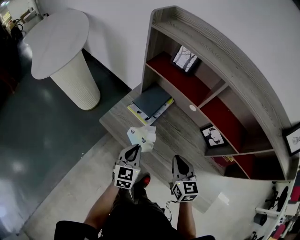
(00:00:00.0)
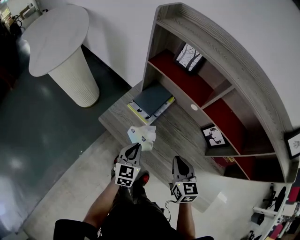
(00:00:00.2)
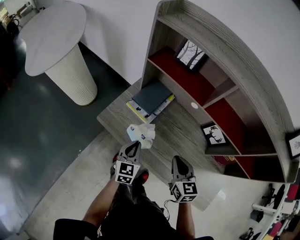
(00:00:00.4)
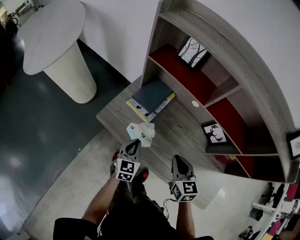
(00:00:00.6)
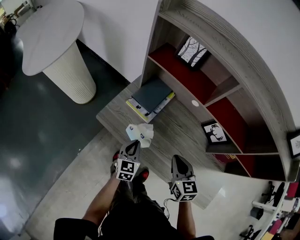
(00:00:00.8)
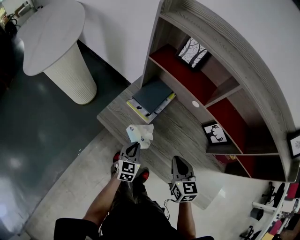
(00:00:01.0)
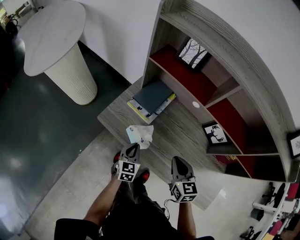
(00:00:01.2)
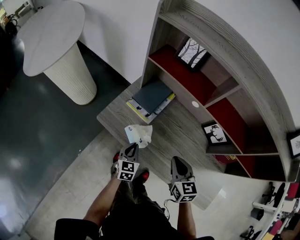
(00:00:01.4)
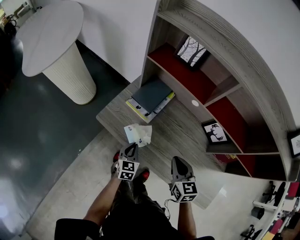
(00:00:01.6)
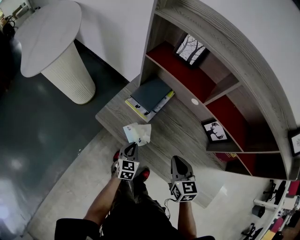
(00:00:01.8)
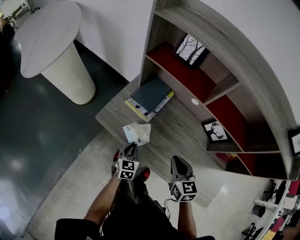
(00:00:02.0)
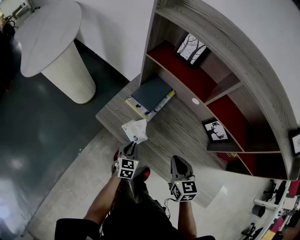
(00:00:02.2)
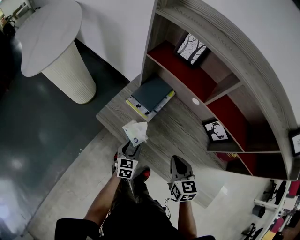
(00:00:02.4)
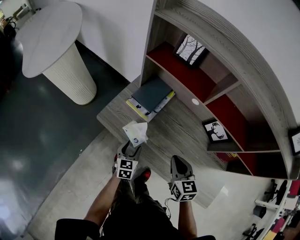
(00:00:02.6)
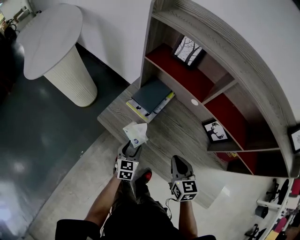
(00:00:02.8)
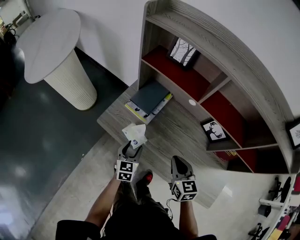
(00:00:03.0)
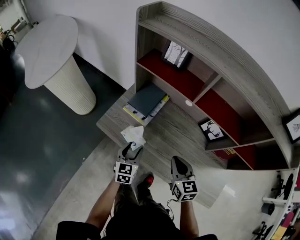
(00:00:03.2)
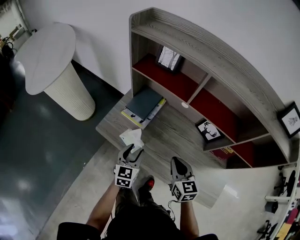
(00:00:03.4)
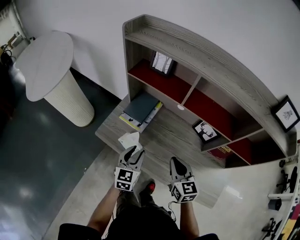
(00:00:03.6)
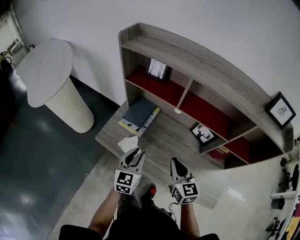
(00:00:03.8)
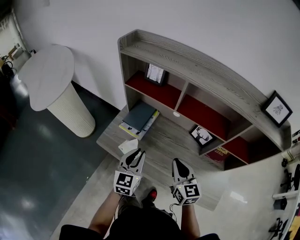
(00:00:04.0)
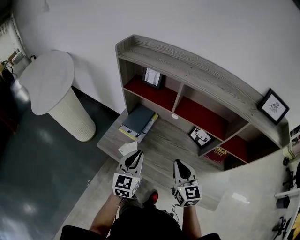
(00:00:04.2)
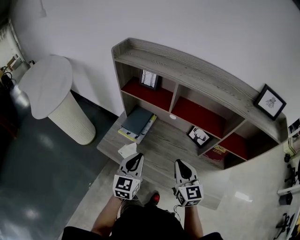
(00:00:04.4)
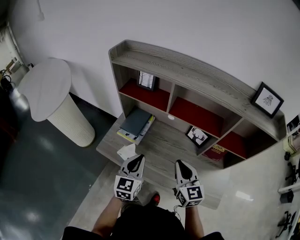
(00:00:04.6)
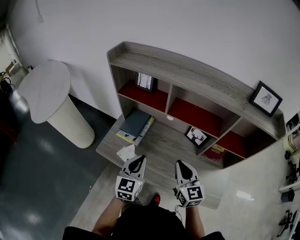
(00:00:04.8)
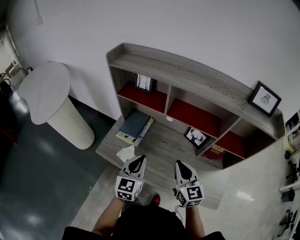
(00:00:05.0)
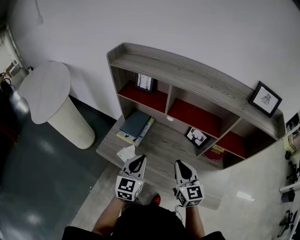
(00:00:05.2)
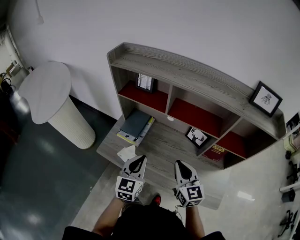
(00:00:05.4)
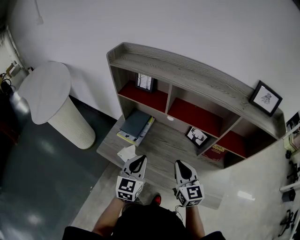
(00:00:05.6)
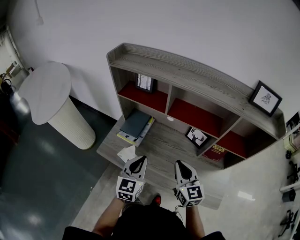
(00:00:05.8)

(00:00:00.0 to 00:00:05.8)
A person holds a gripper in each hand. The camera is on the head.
00:00:00.0 - 00:00:01.4: The left gripper moves downward, approximately 10 cm.
00:00:01.4 - 00:00:02.8: The left gripper opens.
00:00:02.8 - 00:00:04.4: The right gripper goes some 15 cm upward and to the right, and turns by about 20 degrees, while the left gripper moves upward, about 25 cm, swivels approximately 20 degrees, and closes its fingers.
00:00:04.4 - 00:00:05.8: There are only small adjustments of the grippers.

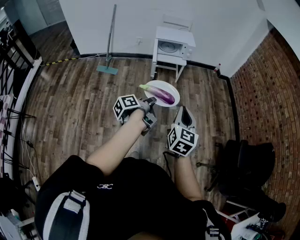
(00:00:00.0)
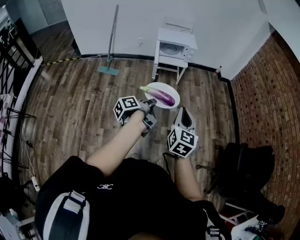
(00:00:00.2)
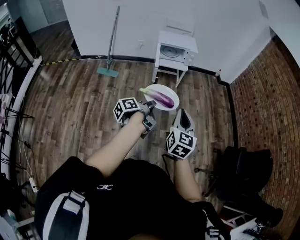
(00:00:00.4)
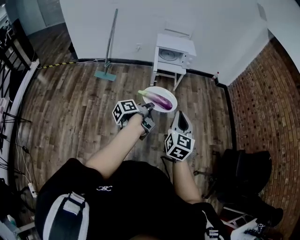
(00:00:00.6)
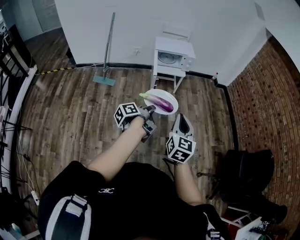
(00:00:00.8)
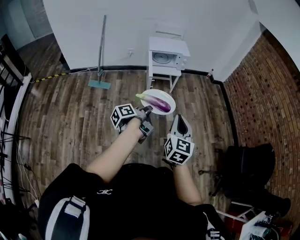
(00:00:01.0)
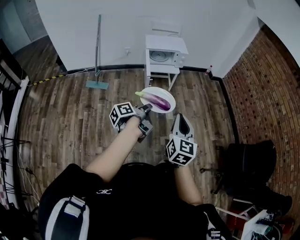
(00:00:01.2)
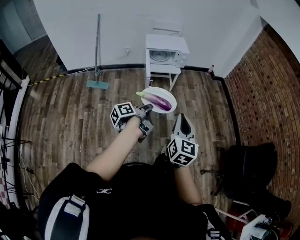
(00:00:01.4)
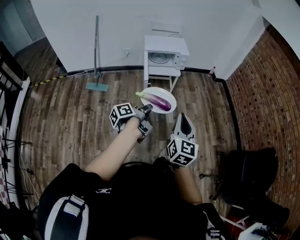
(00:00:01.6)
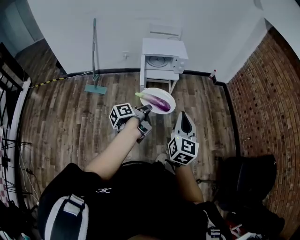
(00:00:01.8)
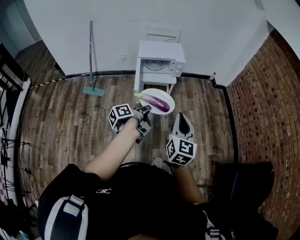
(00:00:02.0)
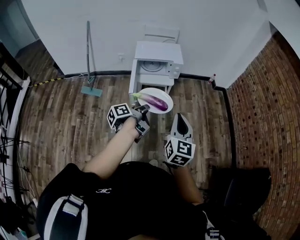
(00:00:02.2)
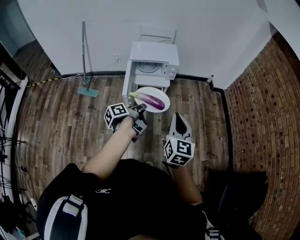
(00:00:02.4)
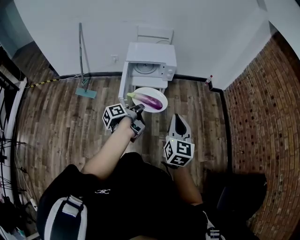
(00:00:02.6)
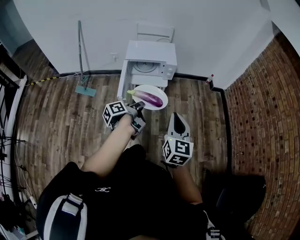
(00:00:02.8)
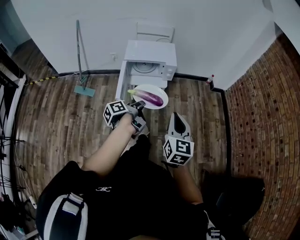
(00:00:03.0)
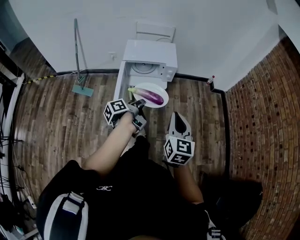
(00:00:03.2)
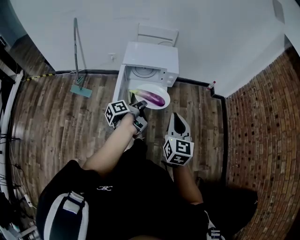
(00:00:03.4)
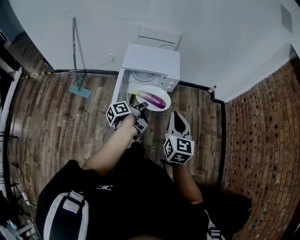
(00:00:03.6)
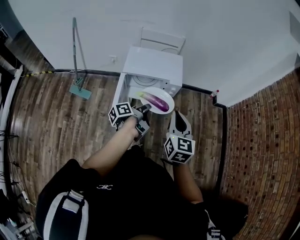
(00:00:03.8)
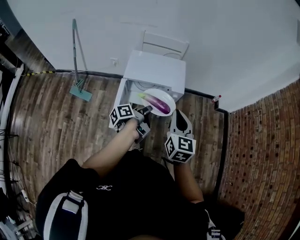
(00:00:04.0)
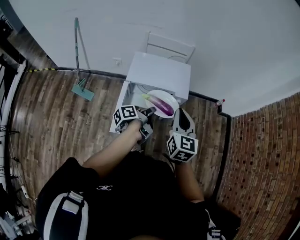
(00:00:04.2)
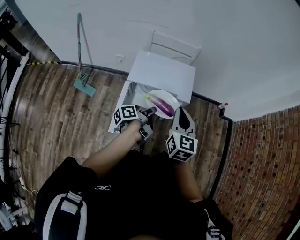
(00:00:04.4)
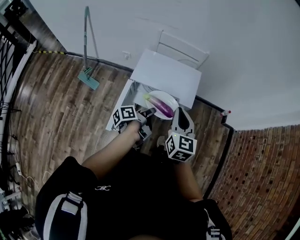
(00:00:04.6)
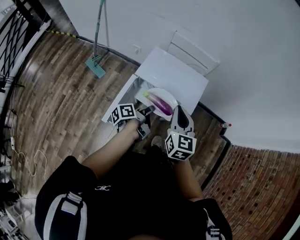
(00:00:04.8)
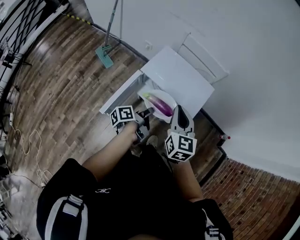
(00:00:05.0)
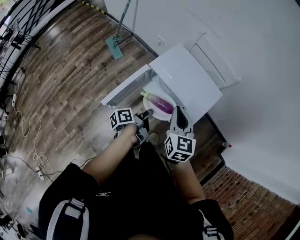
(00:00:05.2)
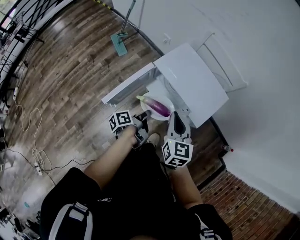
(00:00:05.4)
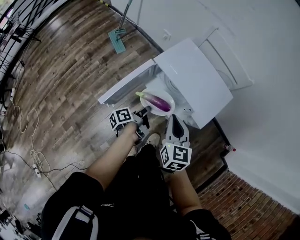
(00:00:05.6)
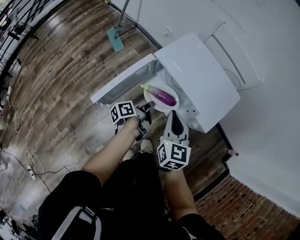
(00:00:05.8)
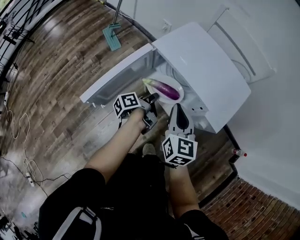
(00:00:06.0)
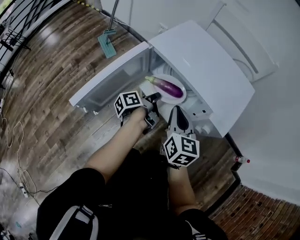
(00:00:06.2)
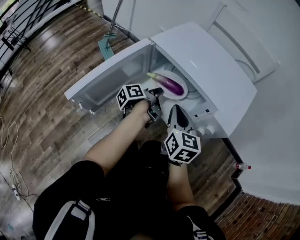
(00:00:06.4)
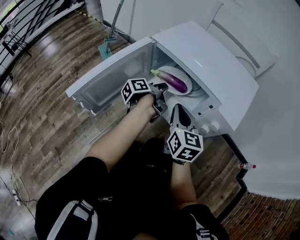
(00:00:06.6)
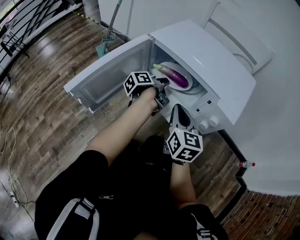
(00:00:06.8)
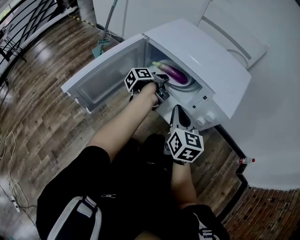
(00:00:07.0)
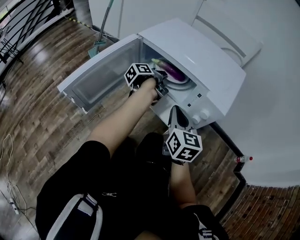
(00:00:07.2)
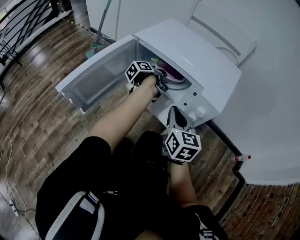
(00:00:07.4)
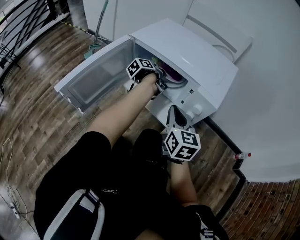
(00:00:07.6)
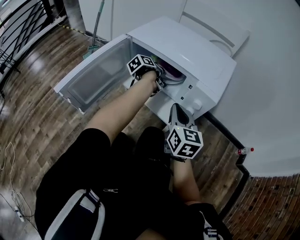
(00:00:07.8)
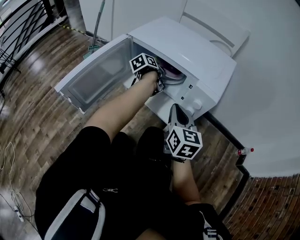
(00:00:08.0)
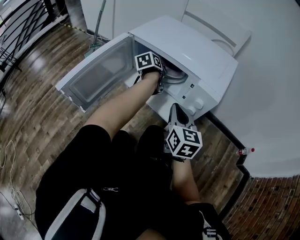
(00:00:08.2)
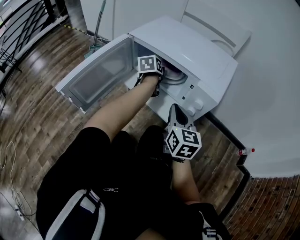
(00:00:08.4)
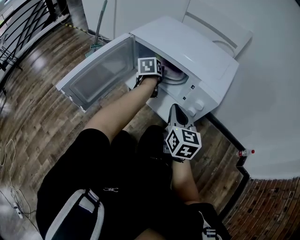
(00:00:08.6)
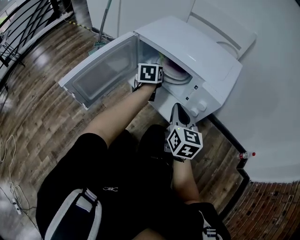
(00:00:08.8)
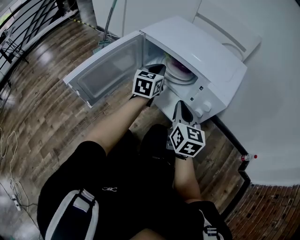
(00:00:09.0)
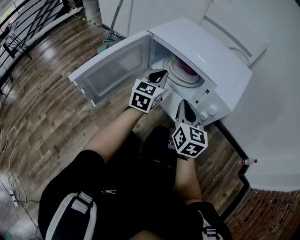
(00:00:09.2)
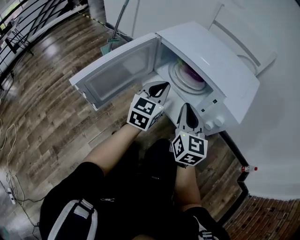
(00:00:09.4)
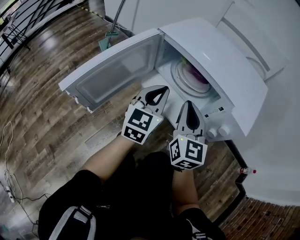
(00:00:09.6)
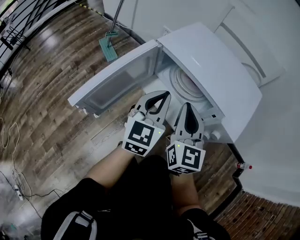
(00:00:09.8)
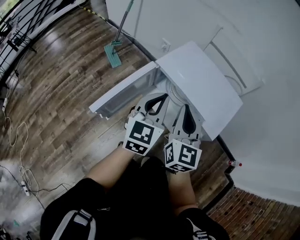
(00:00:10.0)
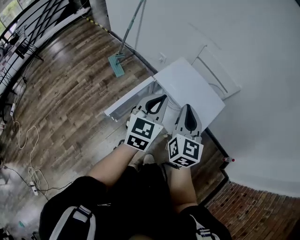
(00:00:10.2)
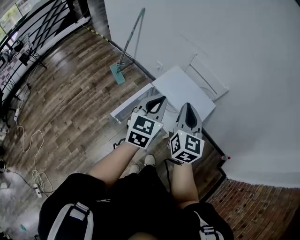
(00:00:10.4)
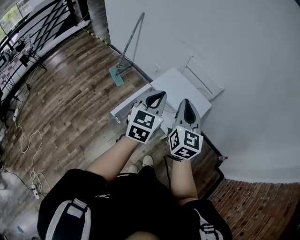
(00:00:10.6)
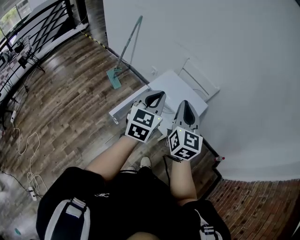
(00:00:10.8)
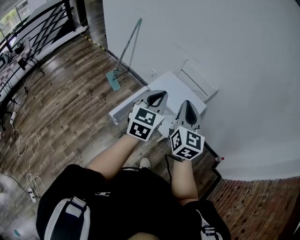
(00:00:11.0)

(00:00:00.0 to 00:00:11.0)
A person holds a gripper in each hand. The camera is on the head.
00:00:00.0 - 00:00:01.6: The right gripper changes place by some 15 cm.
00:00:01.6 - 00:00:03.2: The right gripper moves approximately 35 cm.
00:00:03.2 - 00:00:04.8: The right gripper ends up roughly 40 cm from where it was, and rotates some 30 degrees.
00:00:04.8 - 00:00:06.2: The right gripper goes roughly 35 cm downward.
00:00:06.2 - 00:00:07.8: The right gripper changes place by some 10 cm.
00:00:07.8 - 00:00:09.4: The right gripper ends up approximately 5 cm from where it was.
00:00:09.4 - 00:00:11.0: The right gripper heads upward, covering approximately 50 cm.

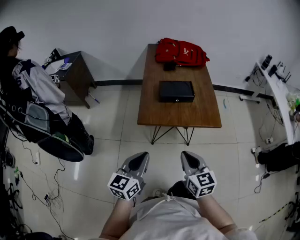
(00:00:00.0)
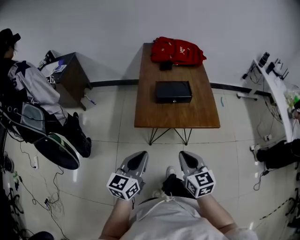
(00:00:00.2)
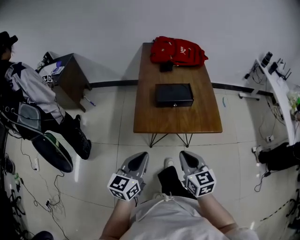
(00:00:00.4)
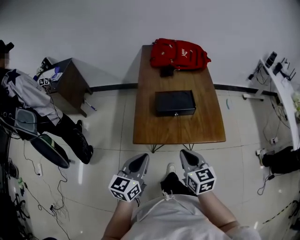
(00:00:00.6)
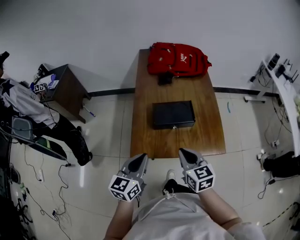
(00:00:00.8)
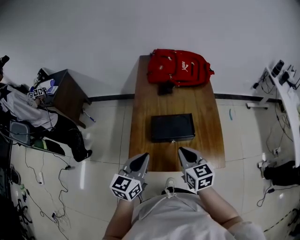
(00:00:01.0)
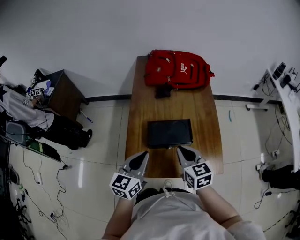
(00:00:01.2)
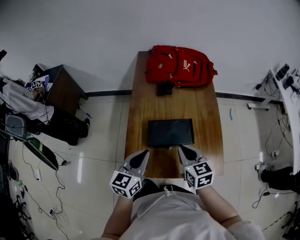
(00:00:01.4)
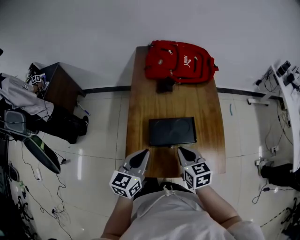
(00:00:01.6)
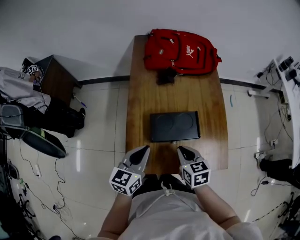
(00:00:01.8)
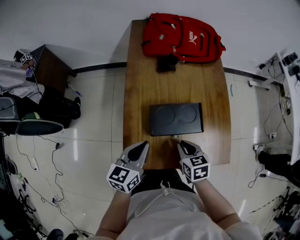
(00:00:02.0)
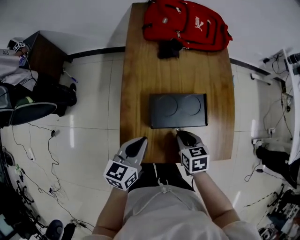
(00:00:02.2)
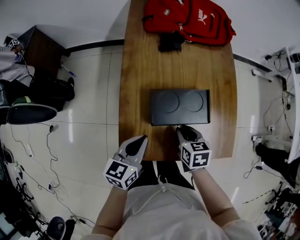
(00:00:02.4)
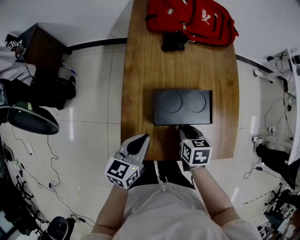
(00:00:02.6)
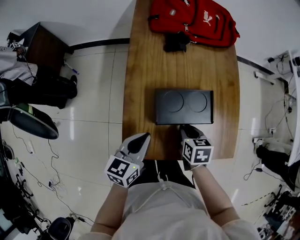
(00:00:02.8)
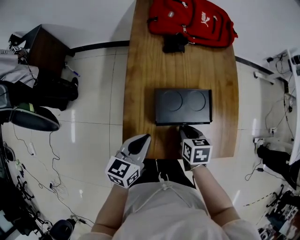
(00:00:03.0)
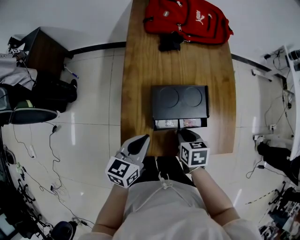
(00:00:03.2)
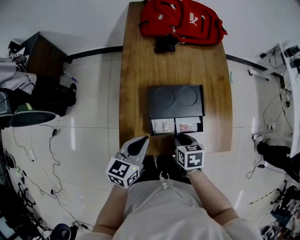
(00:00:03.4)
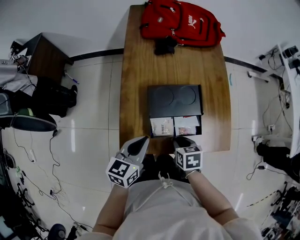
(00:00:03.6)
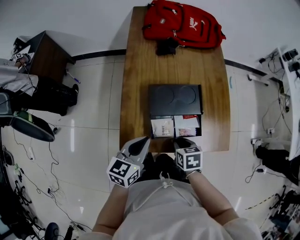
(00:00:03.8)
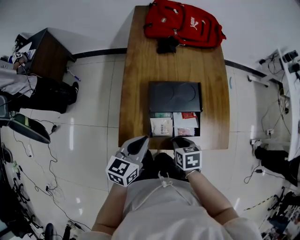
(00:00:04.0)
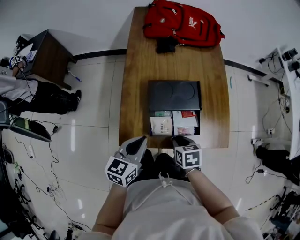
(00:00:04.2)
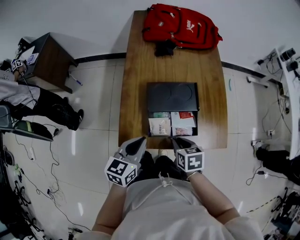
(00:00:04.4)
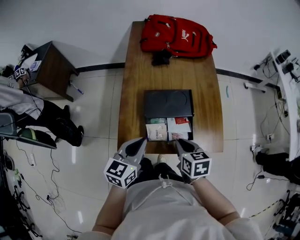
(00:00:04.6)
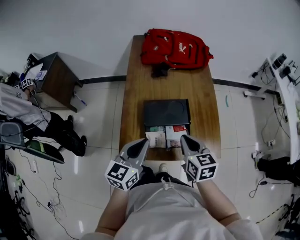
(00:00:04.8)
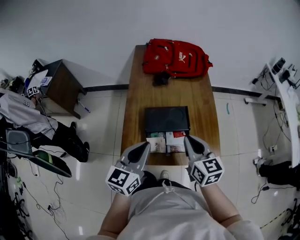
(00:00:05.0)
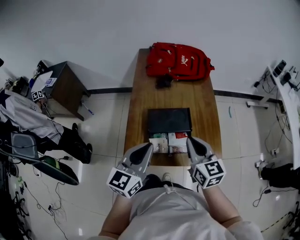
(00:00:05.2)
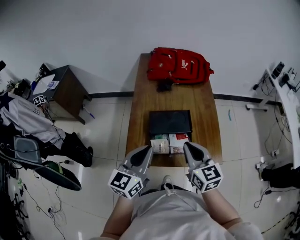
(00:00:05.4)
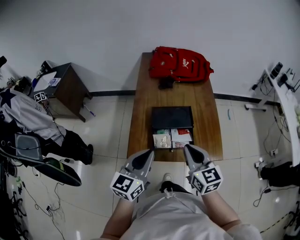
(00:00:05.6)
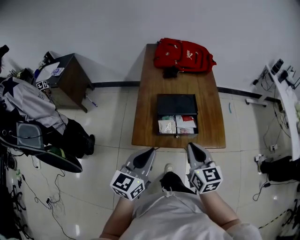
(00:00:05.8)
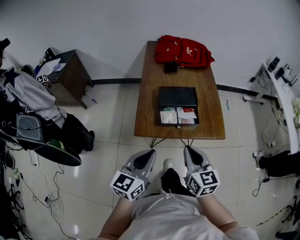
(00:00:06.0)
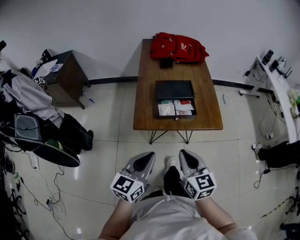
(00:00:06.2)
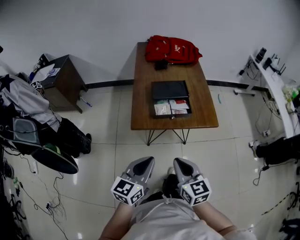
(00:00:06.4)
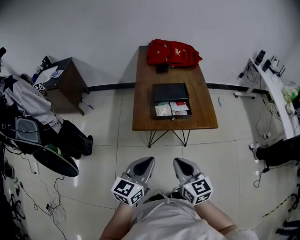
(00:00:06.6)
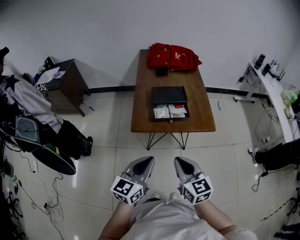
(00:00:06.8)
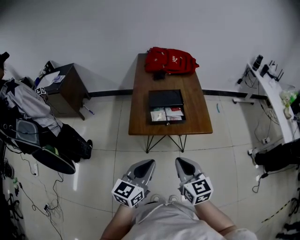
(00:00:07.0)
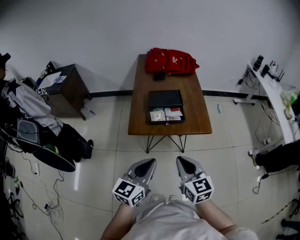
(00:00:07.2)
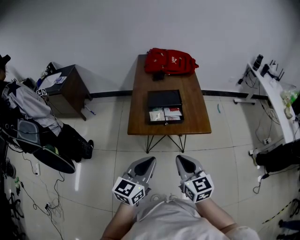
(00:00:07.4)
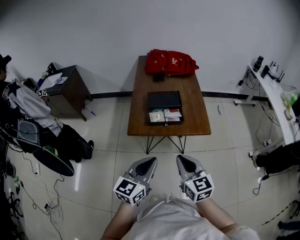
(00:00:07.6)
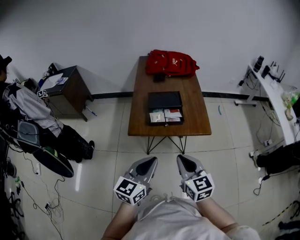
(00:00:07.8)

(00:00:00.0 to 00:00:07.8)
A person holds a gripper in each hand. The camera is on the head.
00:00:00.0 - 00:00:01.6: Both grippers travel together forward, approximately 35 cm.
00:00:01.6 - 00:00:03.2: The two grippers go roughly 10 cm downward. The right gripper rotates about 30 degrees.
00:00:03.2 - 00:00:04.6: The left gripper goes some 5 cm upward; the right gripper heads upward and backward, covering roughly 10 cm.
00:00:04.6 - 00:00:06.2: The right gripper is displaced backward and upward by roughly 25 cm, and rotates roughly 30 degrees. Meanwhile the left gripper shifts roughly 25 cm backward.
00:00:06.2 - 00:00:07.8: The grippers both shift to the right and backward by some 10 cm.
